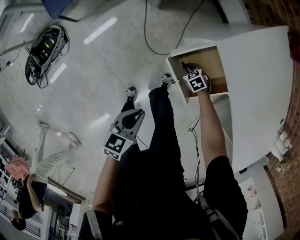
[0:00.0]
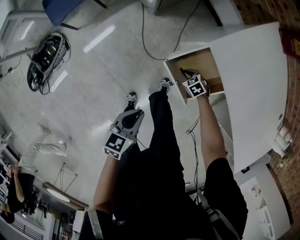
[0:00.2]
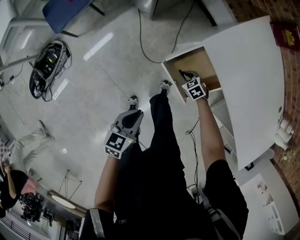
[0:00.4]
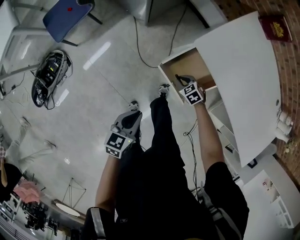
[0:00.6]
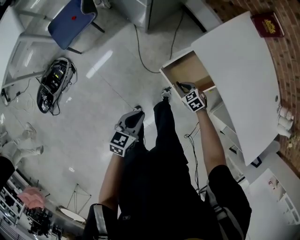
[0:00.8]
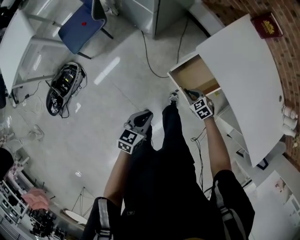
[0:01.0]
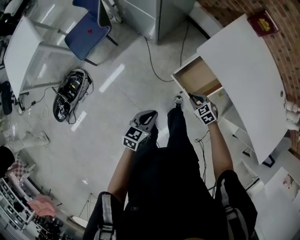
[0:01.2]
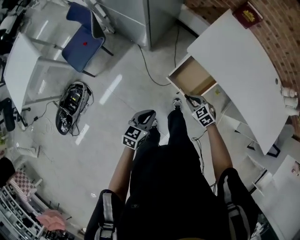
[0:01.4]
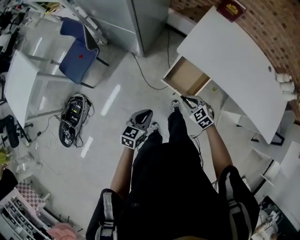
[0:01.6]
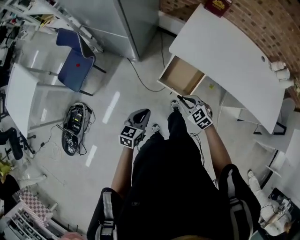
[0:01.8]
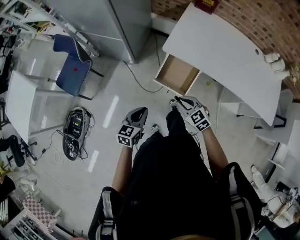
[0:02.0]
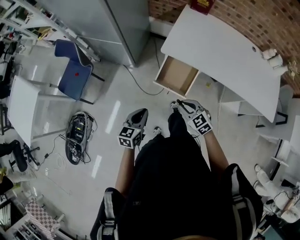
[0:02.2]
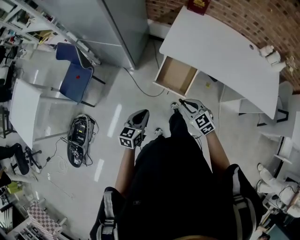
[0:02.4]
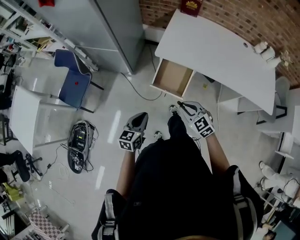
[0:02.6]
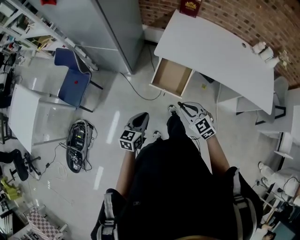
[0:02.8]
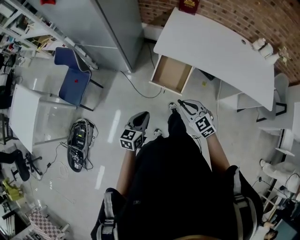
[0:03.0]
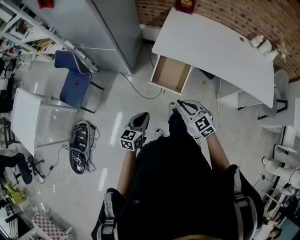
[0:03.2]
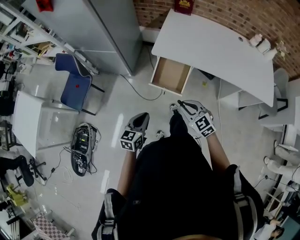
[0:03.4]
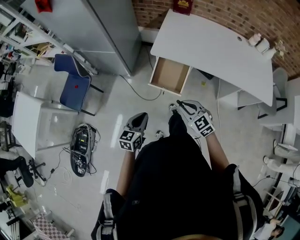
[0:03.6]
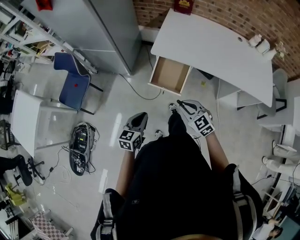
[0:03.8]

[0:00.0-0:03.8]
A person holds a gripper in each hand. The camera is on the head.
0:00.0 to 0:01.2: The left gripper heads upward, covering about 10 cm. Meanwhile the right gripper travels upward by approximately 25 cm.
0:01.2 to 0:02.6: The left gripper moves upward and backward, roughly 10 cm. Meanwhile the right gripper is displaced upward and backward by about 25 cm, and turns by approximately 30 degrees.
0:02.6 to 0:03.8: The grippers move only a little.

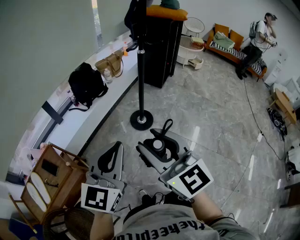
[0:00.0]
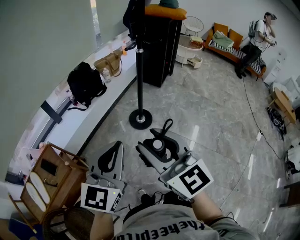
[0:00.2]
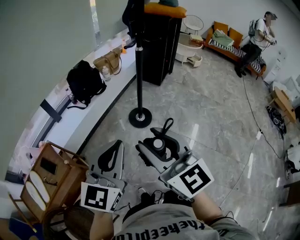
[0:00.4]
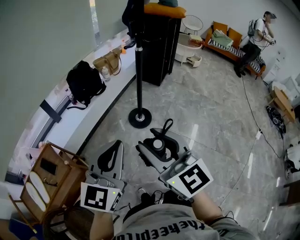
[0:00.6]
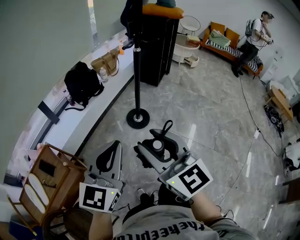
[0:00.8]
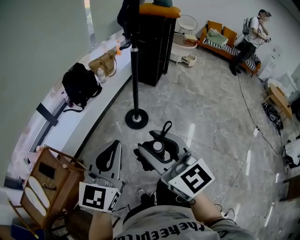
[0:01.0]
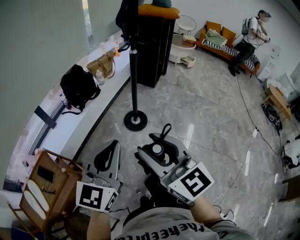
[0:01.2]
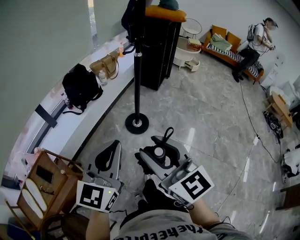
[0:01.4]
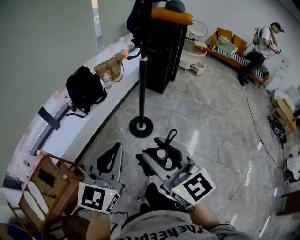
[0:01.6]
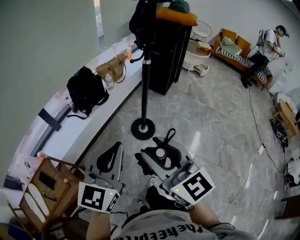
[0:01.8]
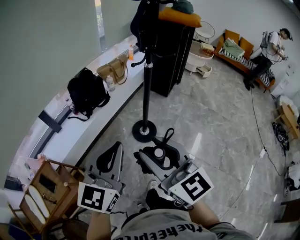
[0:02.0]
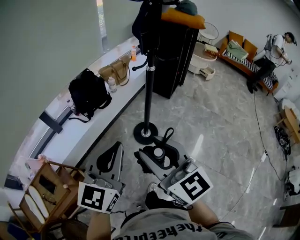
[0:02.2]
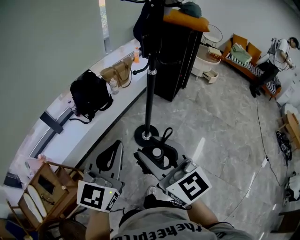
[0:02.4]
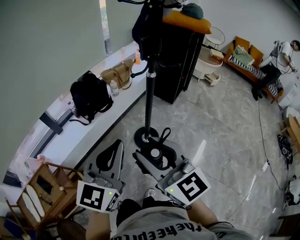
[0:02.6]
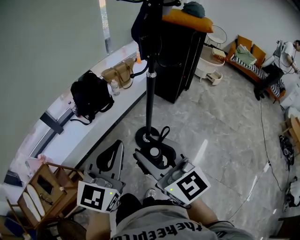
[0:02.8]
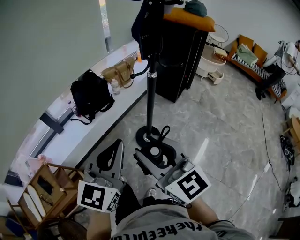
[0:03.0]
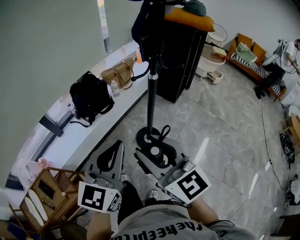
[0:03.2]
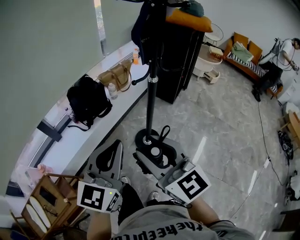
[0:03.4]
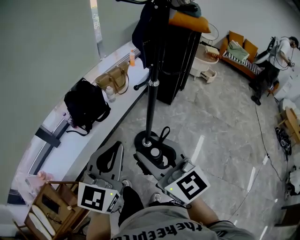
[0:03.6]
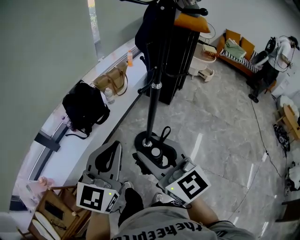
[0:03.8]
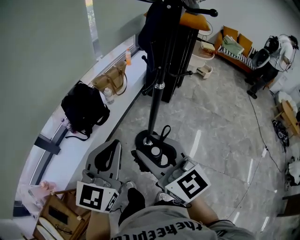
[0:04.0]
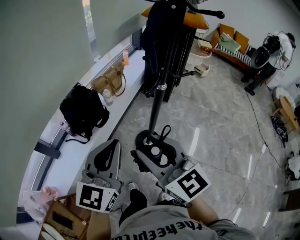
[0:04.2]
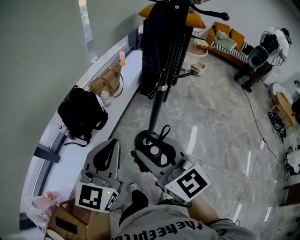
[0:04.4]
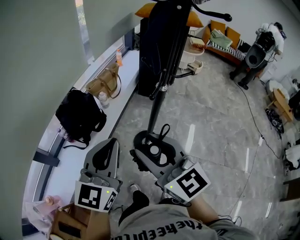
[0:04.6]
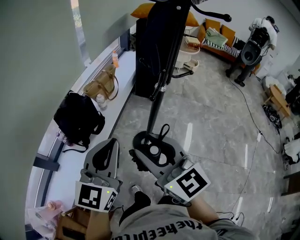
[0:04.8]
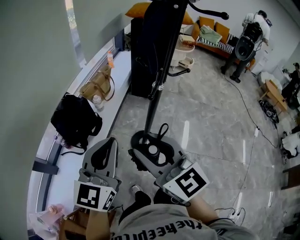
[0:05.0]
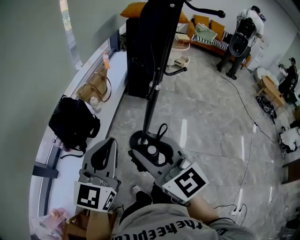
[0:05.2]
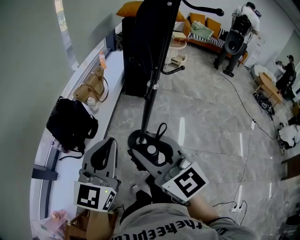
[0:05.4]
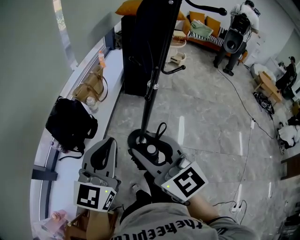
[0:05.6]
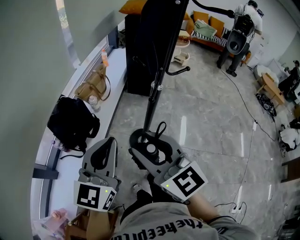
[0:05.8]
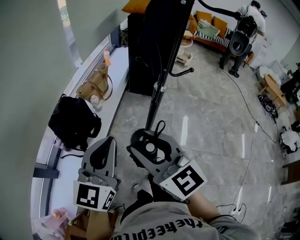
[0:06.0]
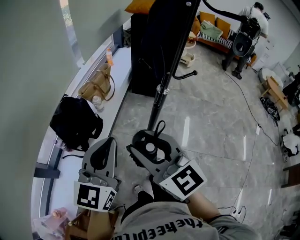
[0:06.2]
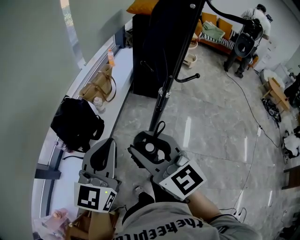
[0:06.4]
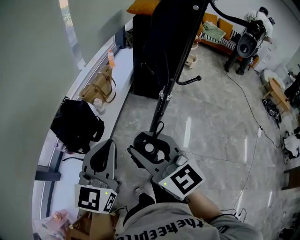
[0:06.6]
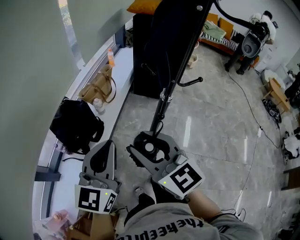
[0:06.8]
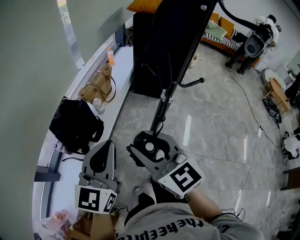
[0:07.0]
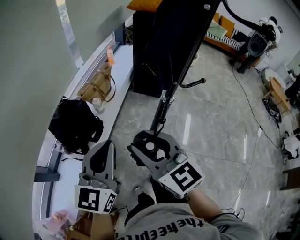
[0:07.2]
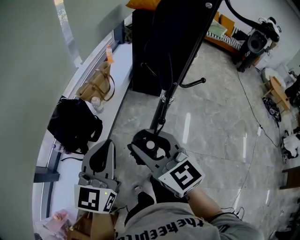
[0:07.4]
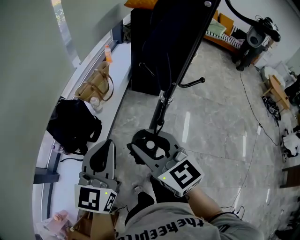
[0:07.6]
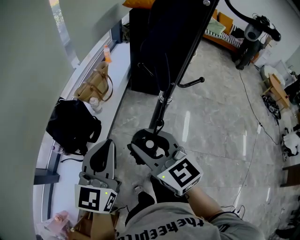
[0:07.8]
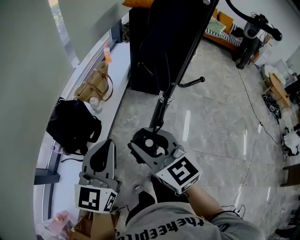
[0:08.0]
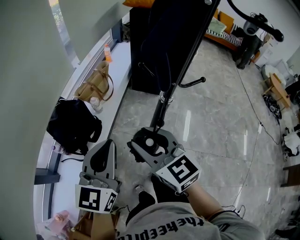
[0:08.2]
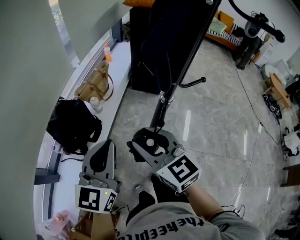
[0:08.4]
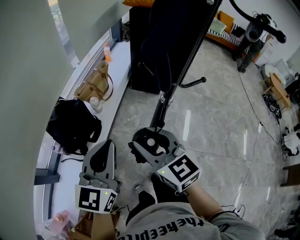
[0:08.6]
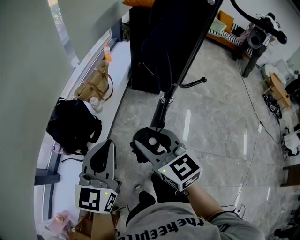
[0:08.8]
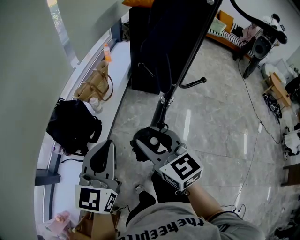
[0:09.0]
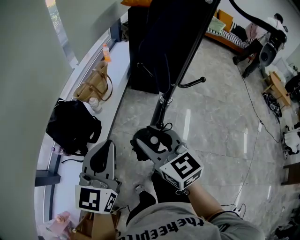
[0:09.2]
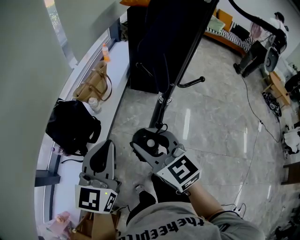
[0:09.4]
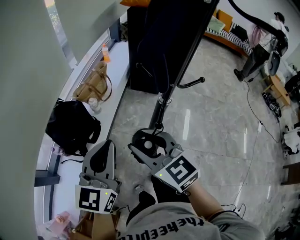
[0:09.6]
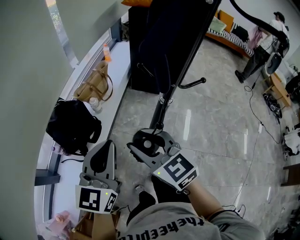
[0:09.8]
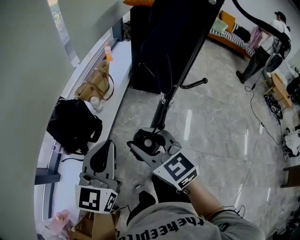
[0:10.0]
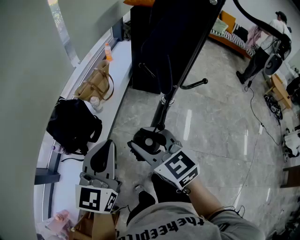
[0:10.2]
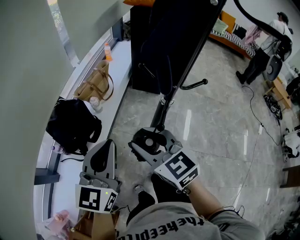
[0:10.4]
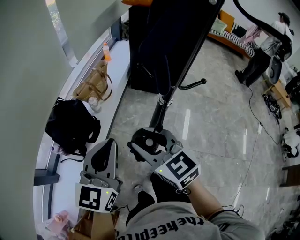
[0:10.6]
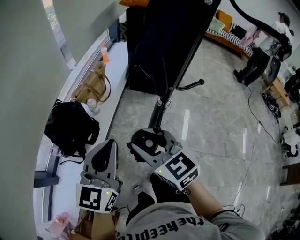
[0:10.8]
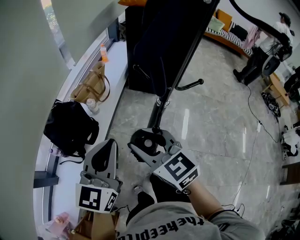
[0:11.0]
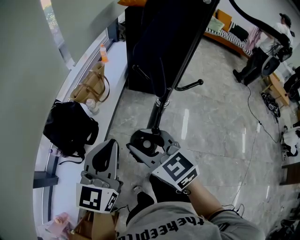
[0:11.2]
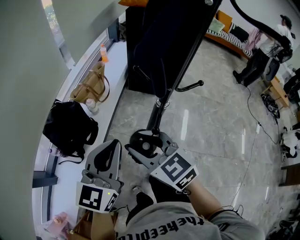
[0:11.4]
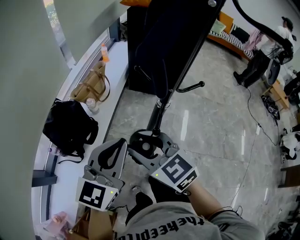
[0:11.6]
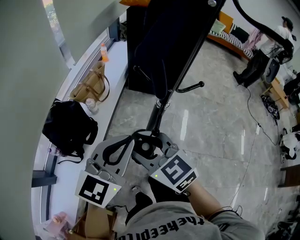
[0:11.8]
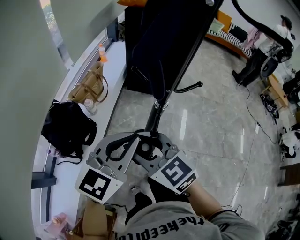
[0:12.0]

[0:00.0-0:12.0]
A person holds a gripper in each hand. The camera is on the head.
0:00.0 to 0:01.6: Both grippers travel together forward, approximately 10 cm.
0:01.6 to 0:03.0: The grippers both shift forward by approximately 15 cm.
0:03.0 to 0:04.4: The two grippers go about 20 cm forward and to the left.
0:04.4 to 0:06.0: The two grippers go about 5 cm forward.
0:06.0 to 0:07.6: The grippers both shift forward by some 10 cm.
0:07.6 to 0:10.4: The grippers stay close to where they were, moving slightly.
0:10.4 to 0:12.0: The left gripper travels to the right by some 10 cm, and rotates roughly 30 degrees.

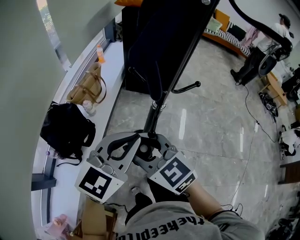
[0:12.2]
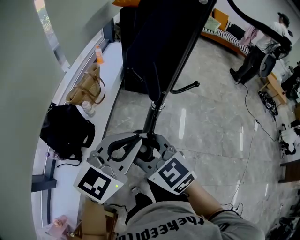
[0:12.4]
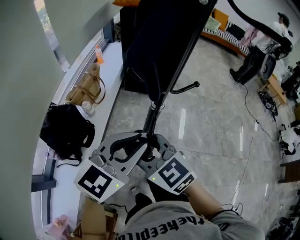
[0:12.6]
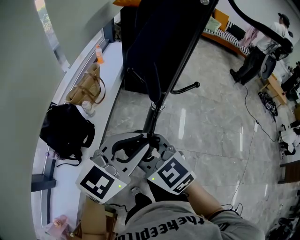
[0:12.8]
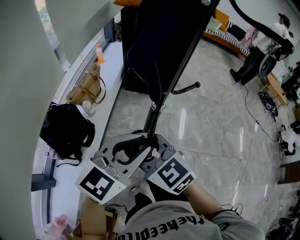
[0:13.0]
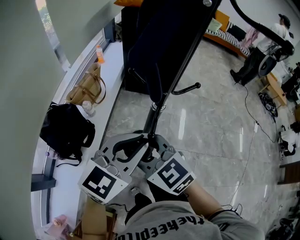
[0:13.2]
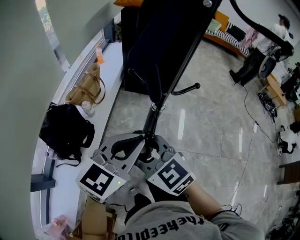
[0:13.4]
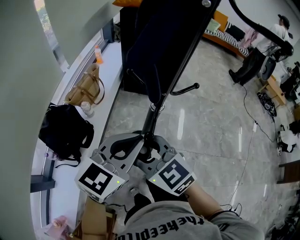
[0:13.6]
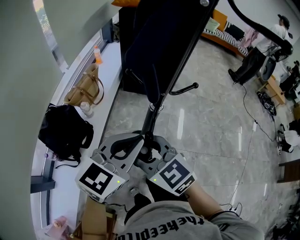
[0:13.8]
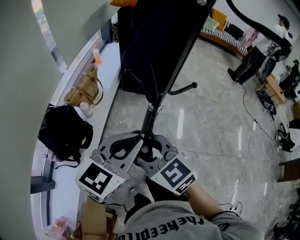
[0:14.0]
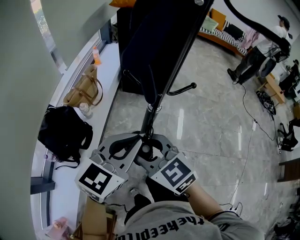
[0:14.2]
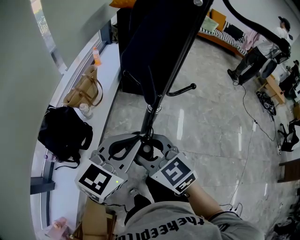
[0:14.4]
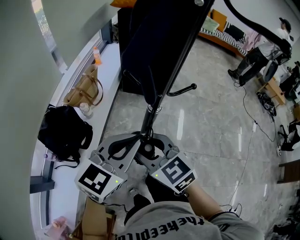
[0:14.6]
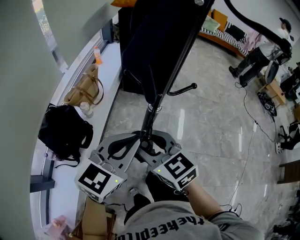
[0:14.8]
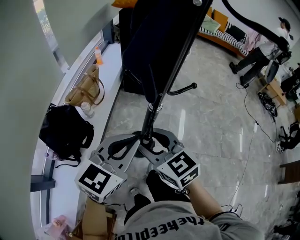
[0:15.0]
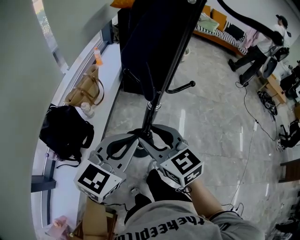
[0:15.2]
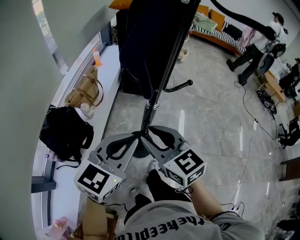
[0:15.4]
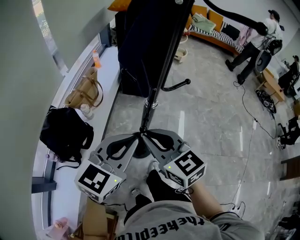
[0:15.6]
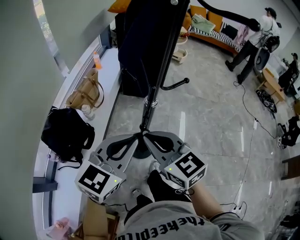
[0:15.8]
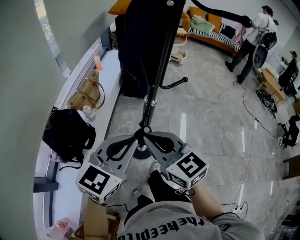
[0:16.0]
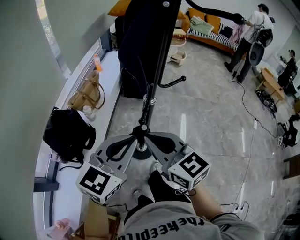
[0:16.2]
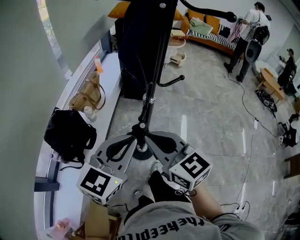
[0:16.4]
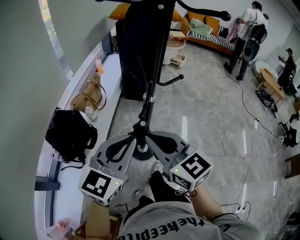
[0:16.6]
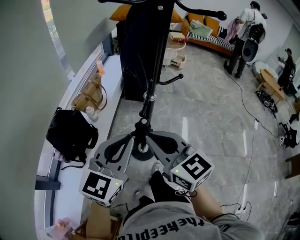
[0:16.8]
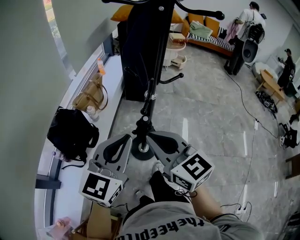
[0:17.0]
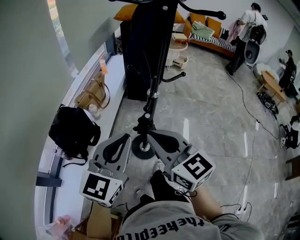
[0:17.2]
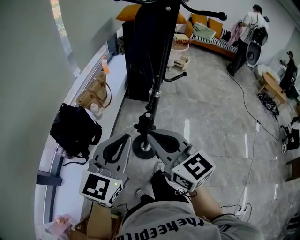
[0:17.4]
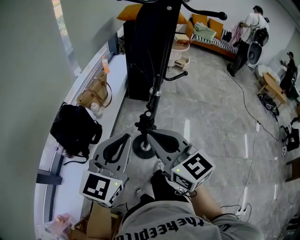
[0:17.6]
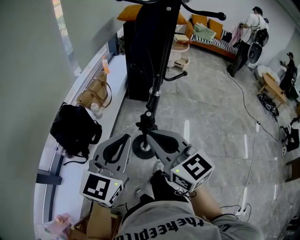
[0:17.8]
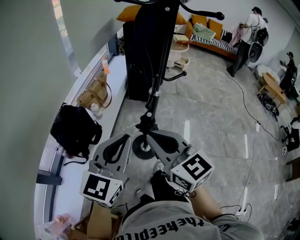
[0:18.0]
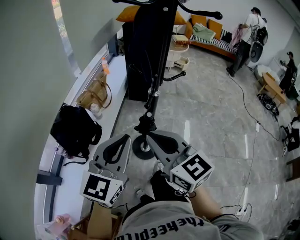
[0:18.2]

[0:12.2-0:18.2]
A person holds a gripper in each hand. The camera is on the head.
0:12.2 to 0:13.8: There are only small adjustments of the grippers.
0:13.8 to 0:15.2: The right gripper moves to the right, roughly 5 cm.
0:15.2 to 0:16.6: The right gripper heads backward and upward, covering about 10 cm, and closes its fingers; the left gripper moves backward, some 5 cm.
0:16.6 to 0:18.2: The left gripper moves roughly 5 cm. Meanwhile the right gripper moves roughly 5 cm.

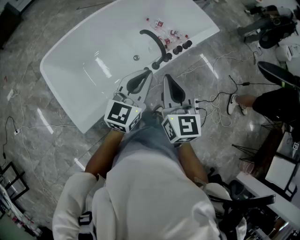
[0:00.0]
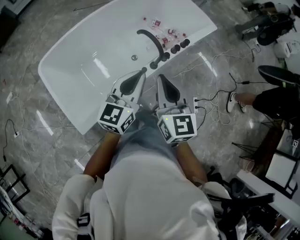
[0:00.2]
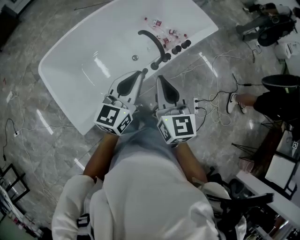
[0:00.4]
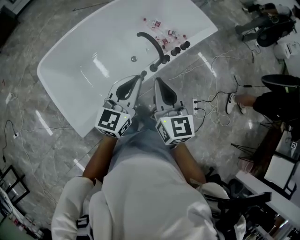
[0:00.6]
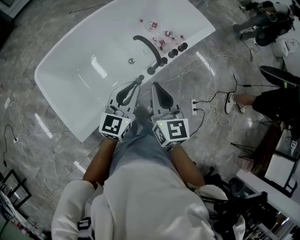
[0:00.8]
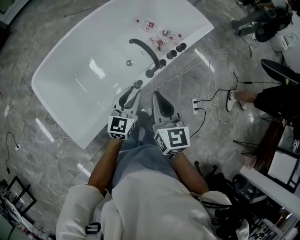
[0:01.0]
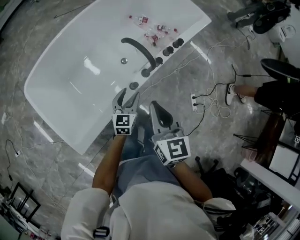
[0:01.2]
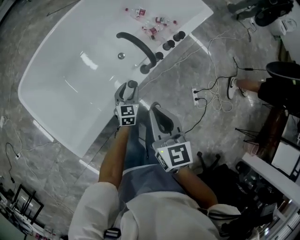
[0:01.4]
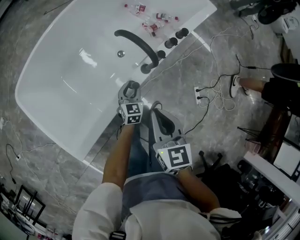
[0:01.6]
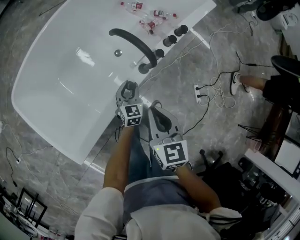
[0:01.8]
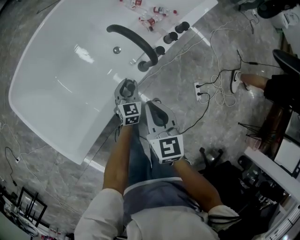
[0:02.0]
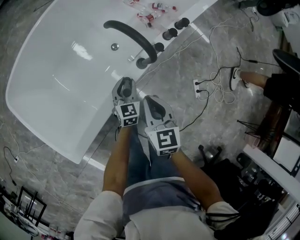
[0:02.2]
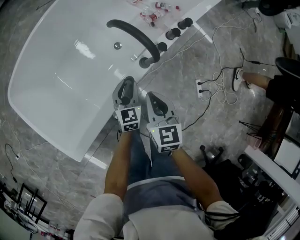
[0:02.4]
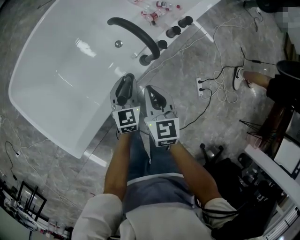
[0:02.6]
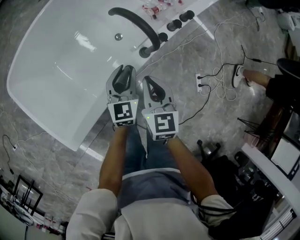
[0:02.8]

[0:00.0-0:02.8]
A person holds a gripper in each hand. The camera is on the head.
0:00.0 to 0:01.4: The left gripper is displaced downward by some 50 cm, rotates about 30 degrees, and opens its fingers. The right gripper shifts approximately 25 cm downward and forward.
0:01.4 to 0:02.8: The right gripper moves downward, roughly 20 cm. Meanwhile the left gripper moves roughly 10 cm downward and comes back.
